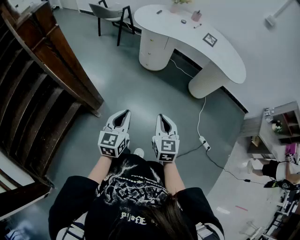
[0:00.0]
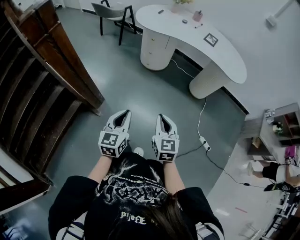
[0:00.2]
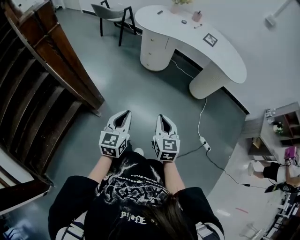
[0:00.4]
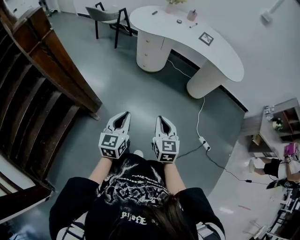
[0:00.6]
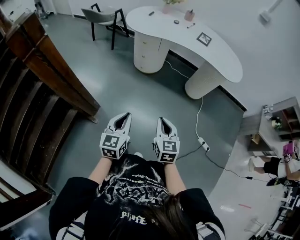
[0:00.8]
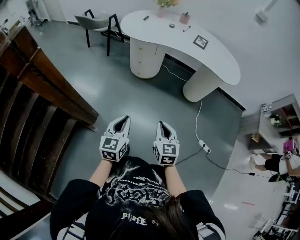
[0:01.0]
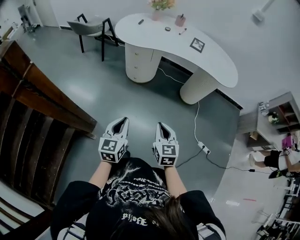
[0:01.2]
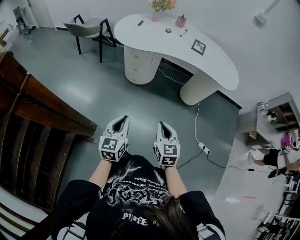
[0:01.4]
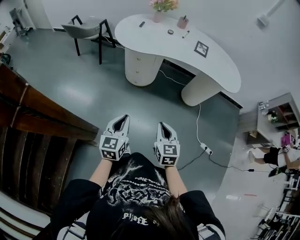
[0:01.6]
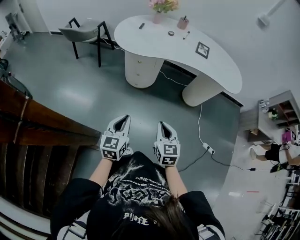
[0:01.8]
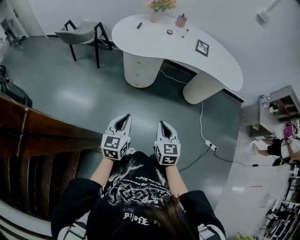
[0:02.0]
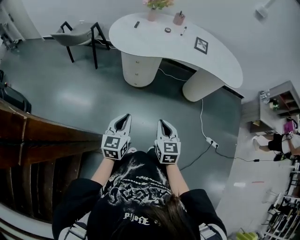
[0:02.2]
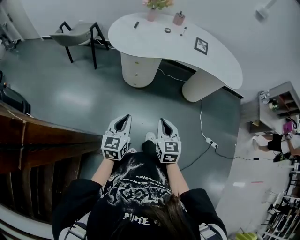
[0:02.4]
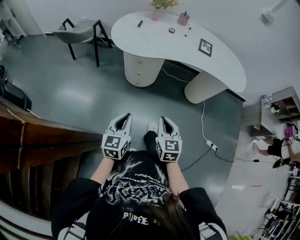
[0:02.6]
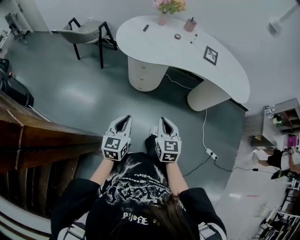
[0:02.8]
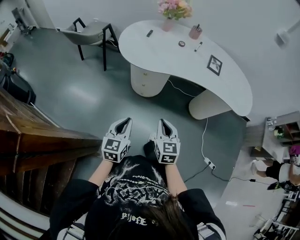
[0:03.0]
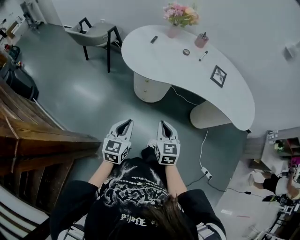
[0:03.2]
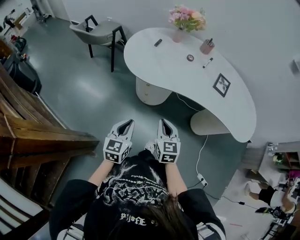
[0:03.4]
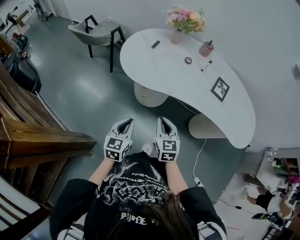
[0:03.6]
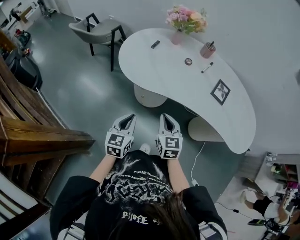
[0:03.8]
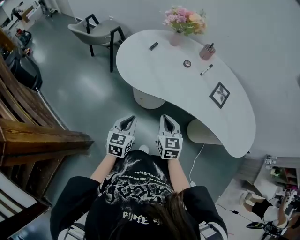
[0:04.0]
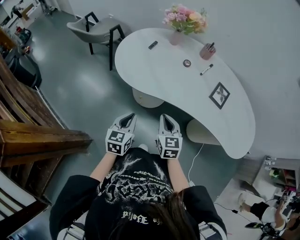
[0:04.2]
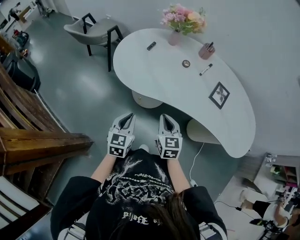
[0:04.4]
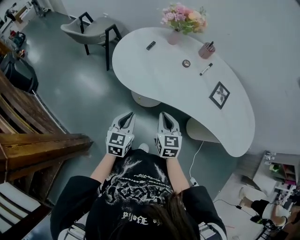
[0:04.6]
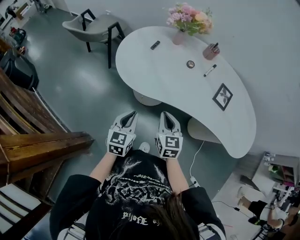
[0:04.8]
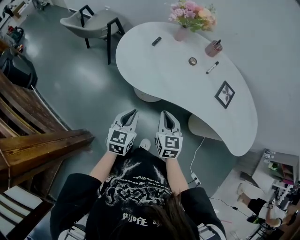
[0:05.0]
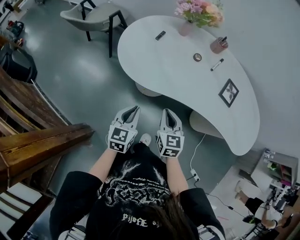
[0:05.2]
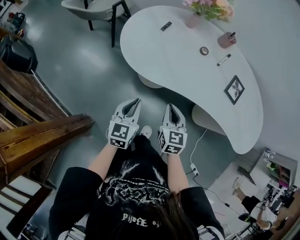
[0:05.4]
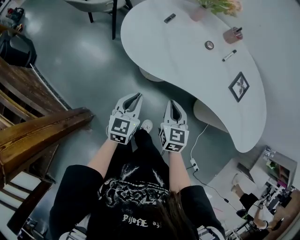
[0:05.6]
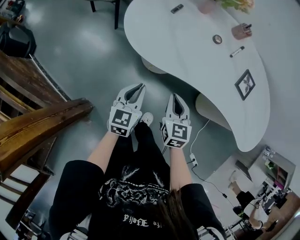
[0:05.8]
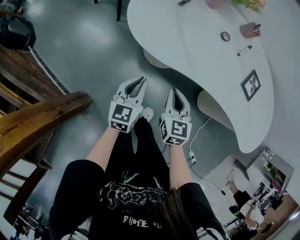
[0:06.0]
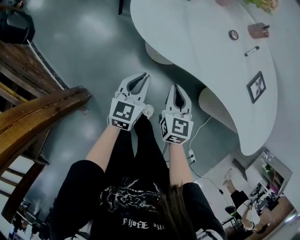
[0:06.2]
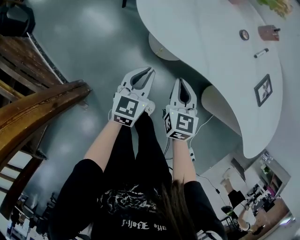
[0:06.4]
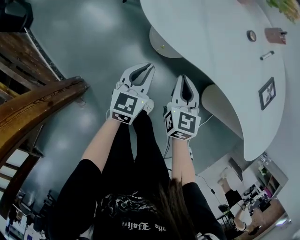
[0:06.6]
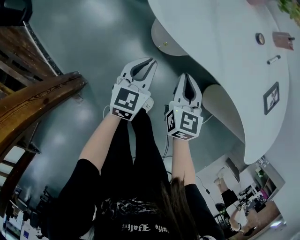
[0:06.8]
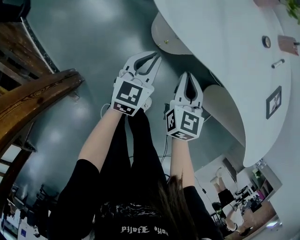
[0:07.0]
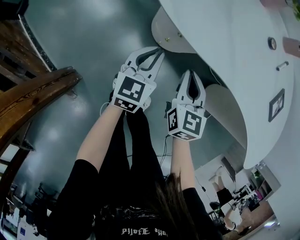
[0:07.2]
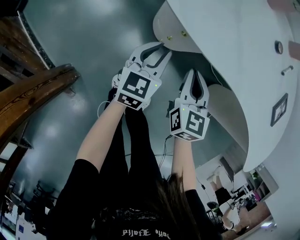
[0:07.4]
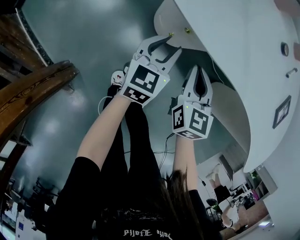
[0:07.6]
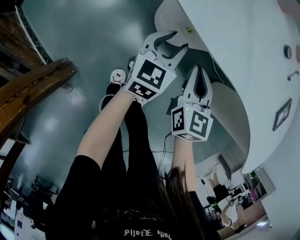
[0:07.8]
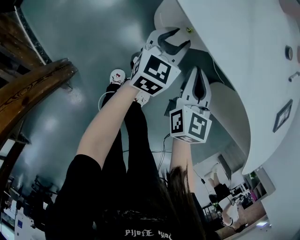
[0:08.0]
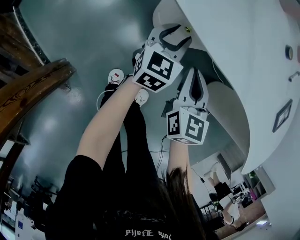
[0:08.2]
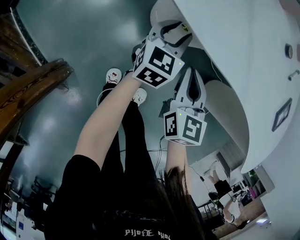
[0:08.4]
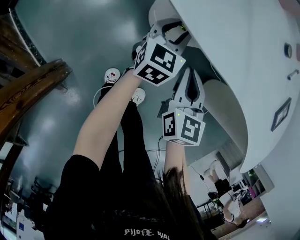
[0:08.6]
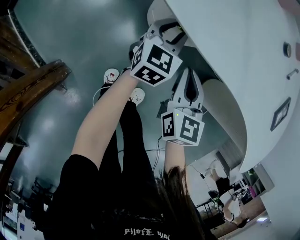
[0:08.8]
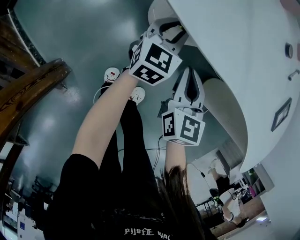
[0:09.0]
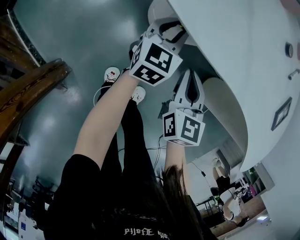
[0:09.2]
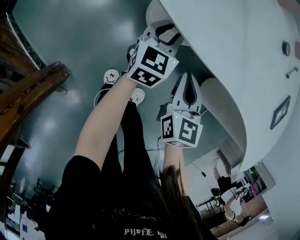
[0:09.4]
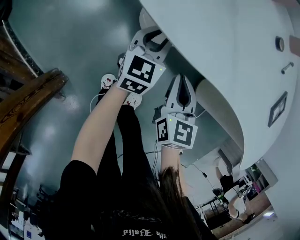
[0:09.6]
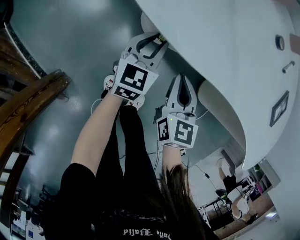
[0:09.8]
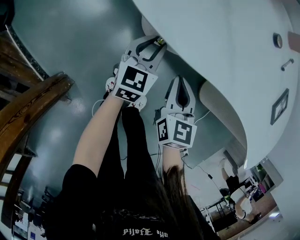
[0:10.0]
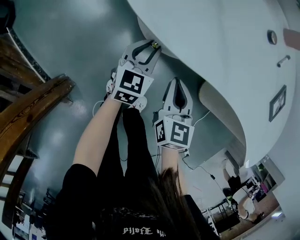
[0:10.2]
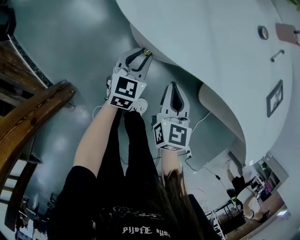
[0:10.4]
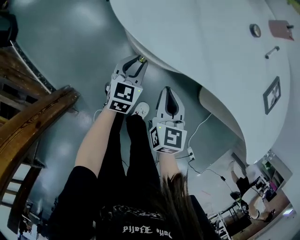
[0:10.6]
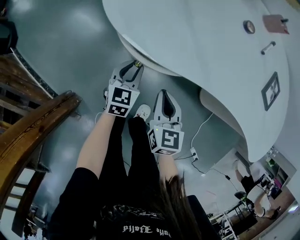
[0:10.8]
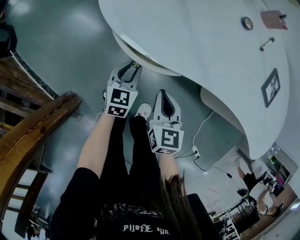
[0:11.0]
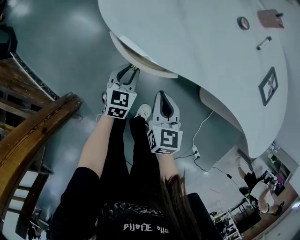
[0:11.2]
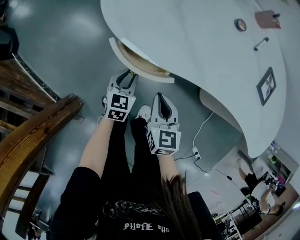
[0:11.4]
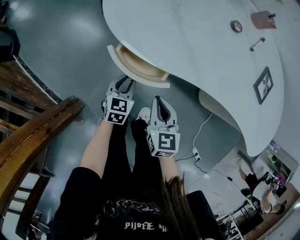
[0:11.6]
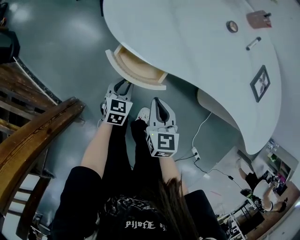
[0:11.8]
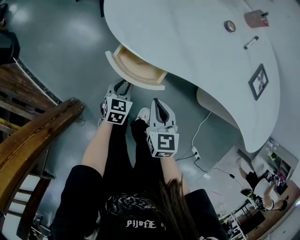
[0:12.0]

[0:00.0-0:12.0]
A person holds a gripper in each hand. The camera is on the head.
0:00.0 to 0:01.6: Both grippers travel together forward, approximately 20 cm.
0:01.6 to 0:03.0: Both grippers travel together forward, about 20 cm.
0:03.0 to 0:04.4: The right gripper is displaced forward by some 25 cm. The left gripper goes roughly 25 cm forward and to the right.
0:04.4 to 0:06.0: The right gripper shifts some 10 cm downward and to the left; the left gripper is displaced downward, forward and to the left by approximately 10 cm.
0:06.0 to 0:07.6: Both grippers travel together downward and forward, some 20 cm. The left gripper opens.
0:07.6 to 0:09.0: The left gripper shifts some 10 cm forward.
0:09.0 to 0:10.4: The left gripper is displaced backward by about 5 cm.
0:10.4 to 0:12.0: The right gripper goes about 10 cm upward and backward; the left gripper shifts approximately 10 cm backward.

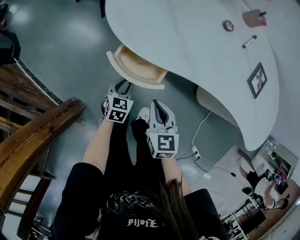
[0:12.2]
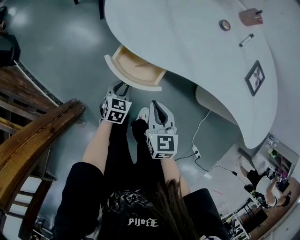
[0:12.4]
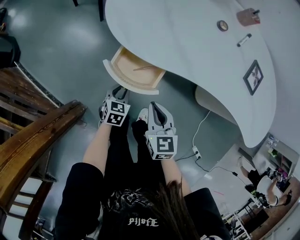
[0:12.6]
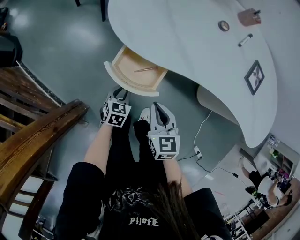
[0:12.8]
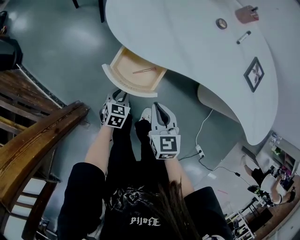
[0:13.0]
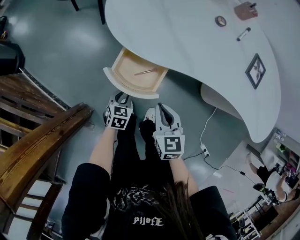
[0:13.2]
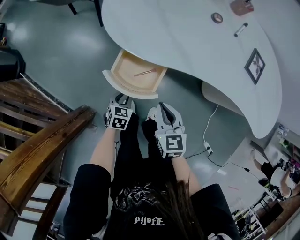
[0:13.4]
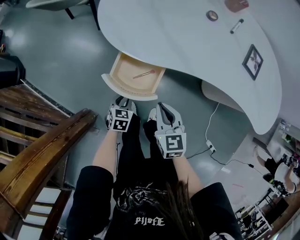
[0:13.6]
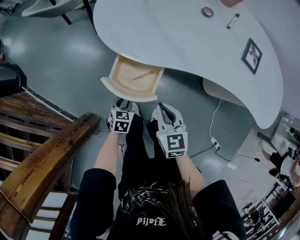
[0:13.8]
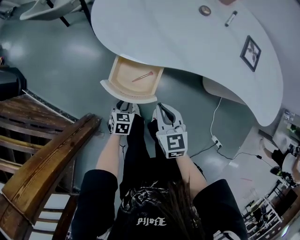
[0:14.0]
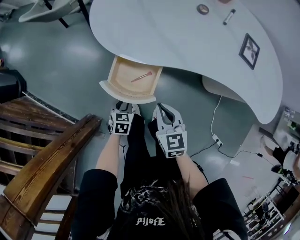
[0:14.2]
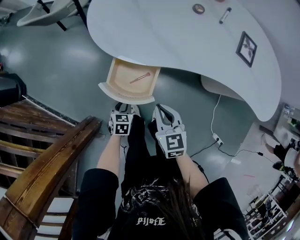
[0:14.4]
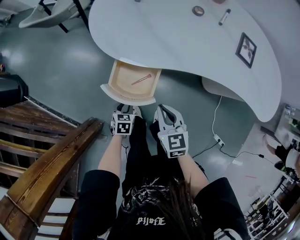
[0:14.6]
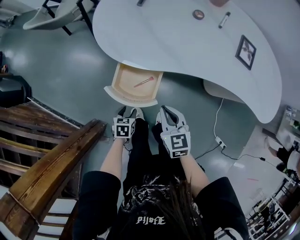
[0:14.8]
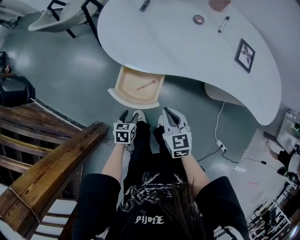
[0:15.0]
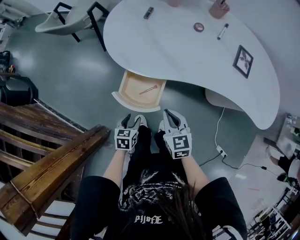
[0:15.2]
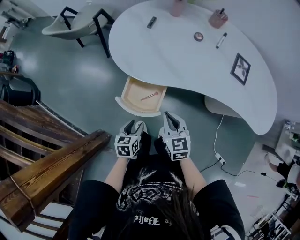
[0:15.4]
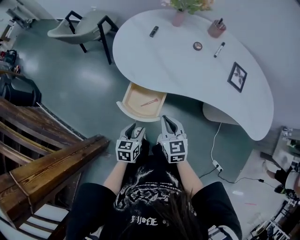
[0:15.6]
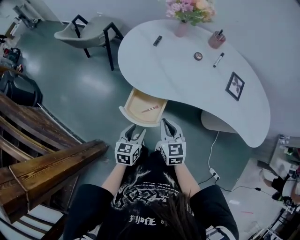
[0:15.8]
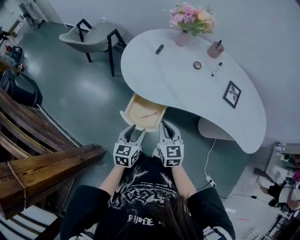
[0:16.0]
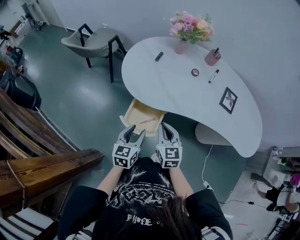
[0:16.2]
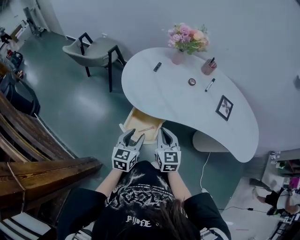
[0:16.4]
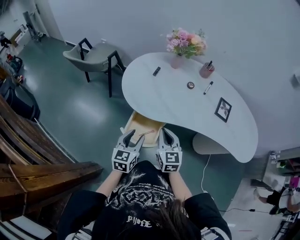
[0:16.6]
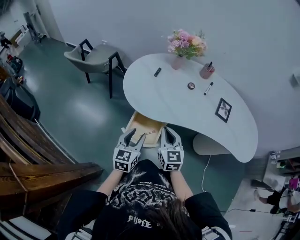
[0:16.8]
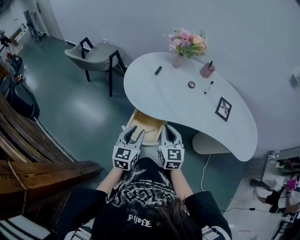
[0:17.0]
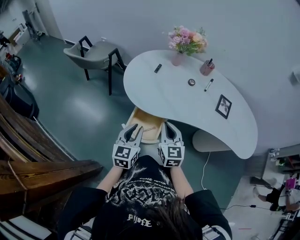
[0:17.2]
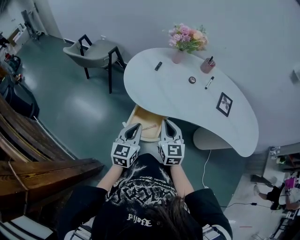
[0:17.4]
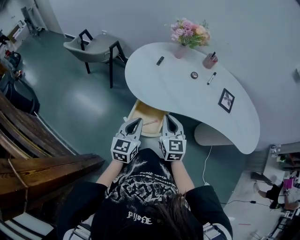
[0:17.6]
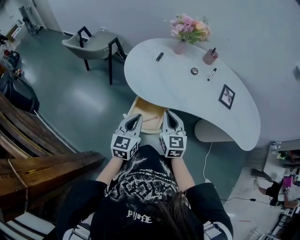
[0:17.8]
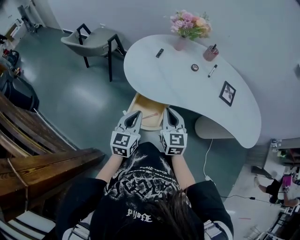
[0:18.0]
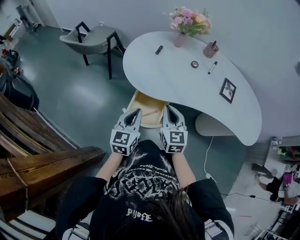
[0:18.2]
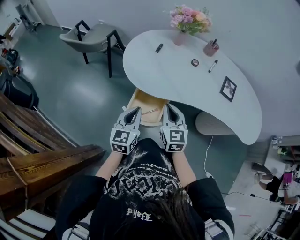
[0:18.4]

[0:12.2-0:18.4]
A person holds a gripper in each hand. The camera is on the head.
0:12.2 to 0:13.8: The left gripper goes about 5 cm backward.
0:13.8 to 0:15.4: The right gripper is displaced upward by approximately 5 cm. The left gripper travels upward by about 15 cm, swivels some 20 degrees, and opens its fingers.
0:15.4 to 0:16.8: The right gripper goes some 10 cm upward; the left gripper moves upward, about 20 cm, and rotates roughly 30 degrees.
0:16.8 to 0:18.4: The left gripper closes.

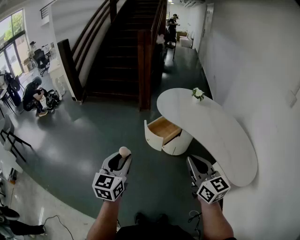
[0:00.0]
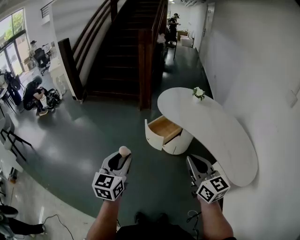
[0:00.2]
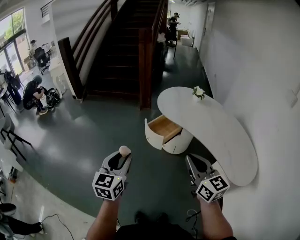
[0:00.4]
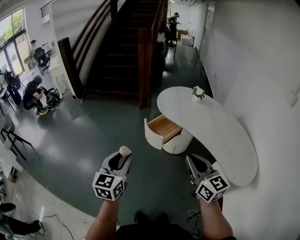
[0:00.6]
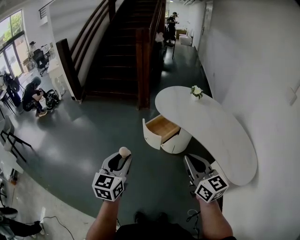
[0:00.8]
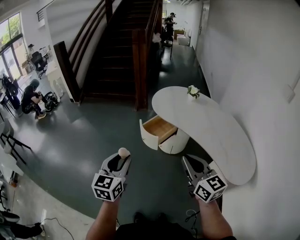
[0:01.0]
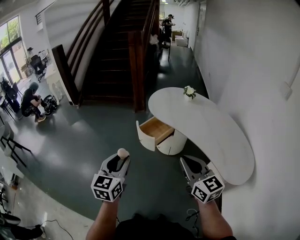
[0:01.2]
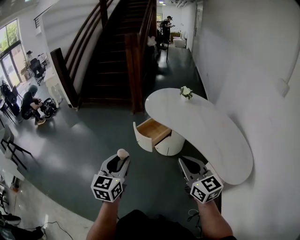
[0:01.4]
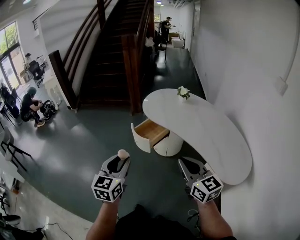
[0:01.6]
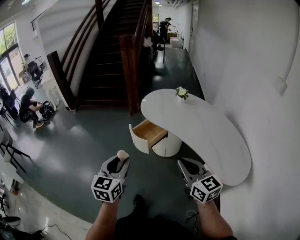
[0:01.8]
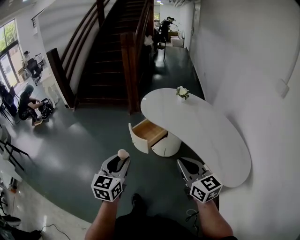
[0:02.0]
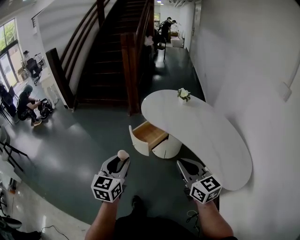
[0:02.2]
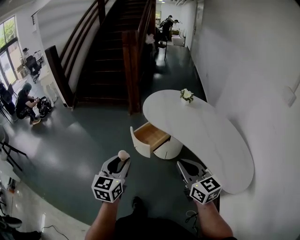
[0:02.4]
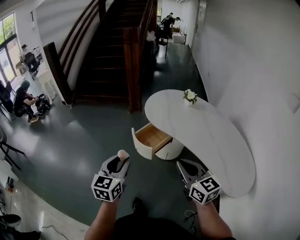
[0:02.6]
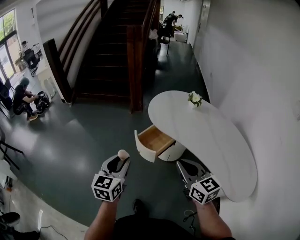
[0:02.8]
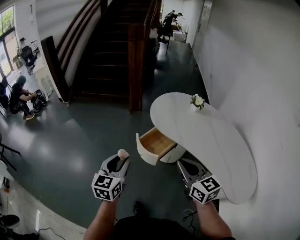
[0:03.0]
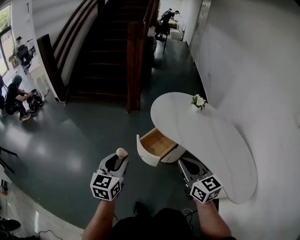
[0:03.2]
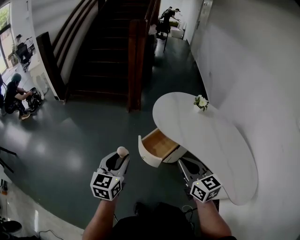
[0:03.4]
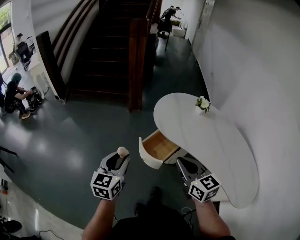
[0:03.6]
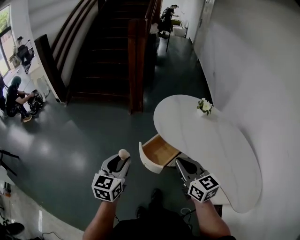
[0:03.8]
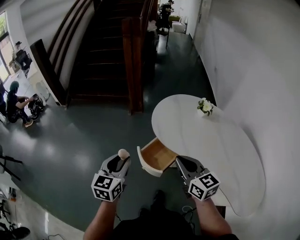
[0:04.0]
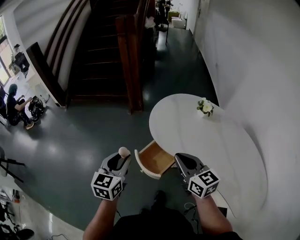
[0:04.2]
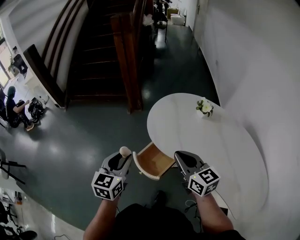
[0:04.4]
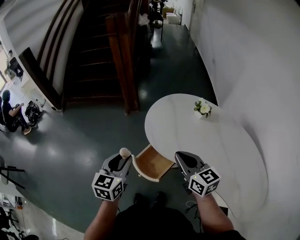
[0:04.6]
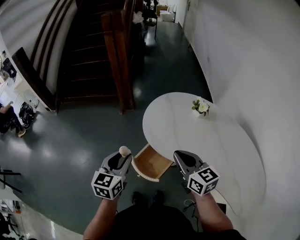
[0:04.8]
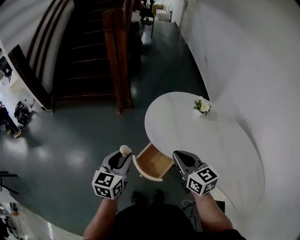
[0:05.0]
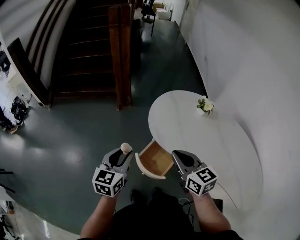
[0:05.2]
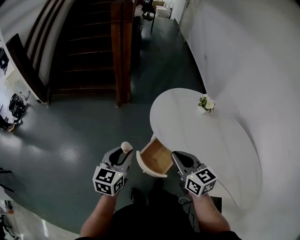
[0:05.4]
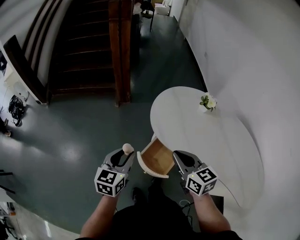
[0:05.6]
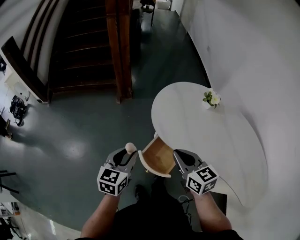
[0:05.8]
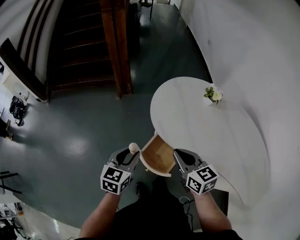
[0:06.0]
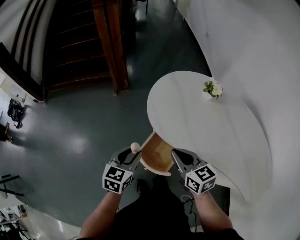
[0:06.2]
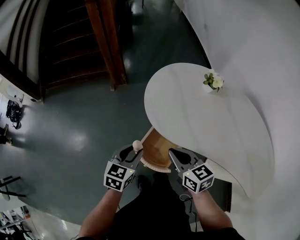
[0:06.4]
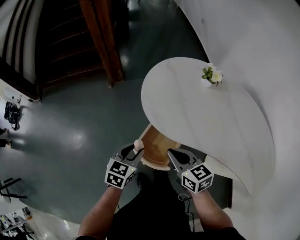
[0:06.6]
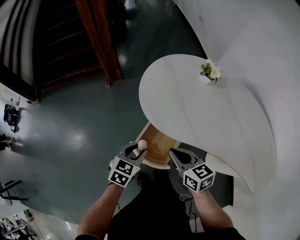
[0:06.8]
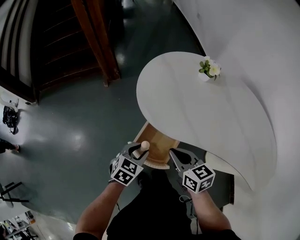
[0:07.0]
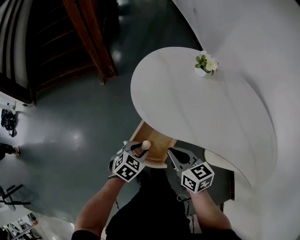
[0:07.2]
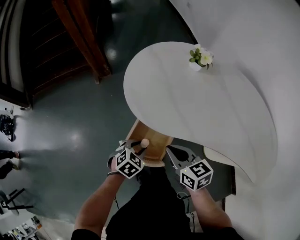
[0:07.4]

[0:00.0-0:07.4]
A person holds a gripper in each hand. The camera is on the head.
0:00.0 to 0:01.4: The two grippers go about 5 cm to the right.
0:01.4 to 0:03.0: Both grippers travel together forward, roughly 20 cm.
0:03.0 to 0:04.4: The two grippers go roughly 20 cm forward.
0:04.4 to 0:06.0: The left gripper shifts about 15 cm downward and forward. The right gripper moves downward and to the left, about 10 cm.
0:06.0 to 0:07.4: The right gripper travels downward and to the right by approximately 15 cm. Meanwhile the left gripper shifts approximately 25 cm downward and to the right, and turns by some 50 degrees.
